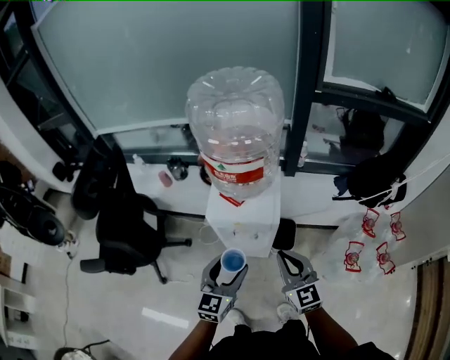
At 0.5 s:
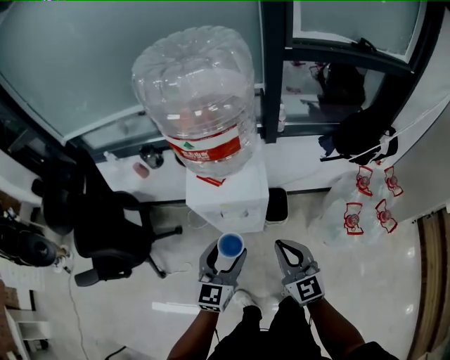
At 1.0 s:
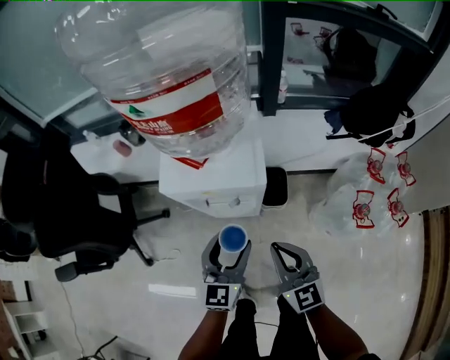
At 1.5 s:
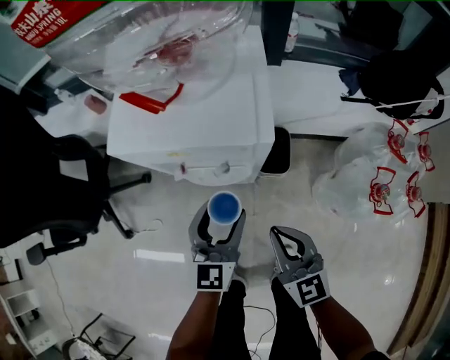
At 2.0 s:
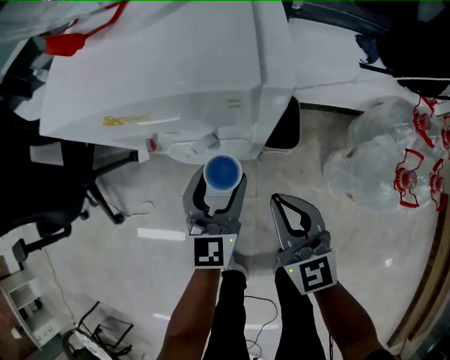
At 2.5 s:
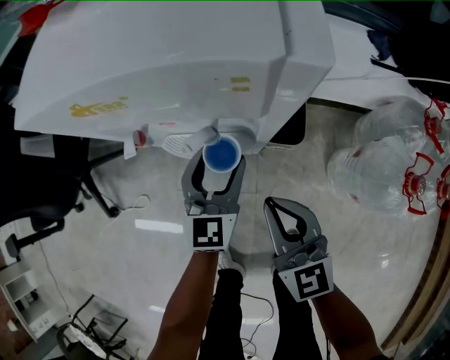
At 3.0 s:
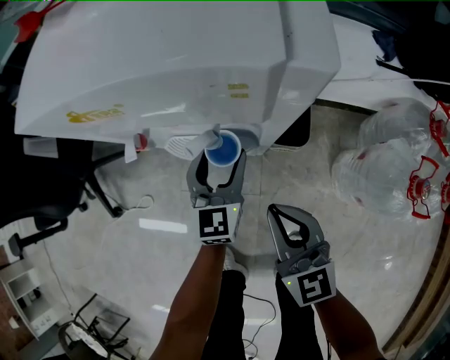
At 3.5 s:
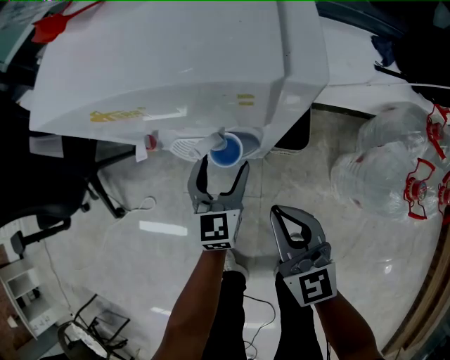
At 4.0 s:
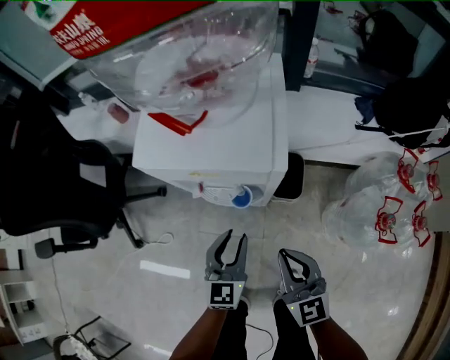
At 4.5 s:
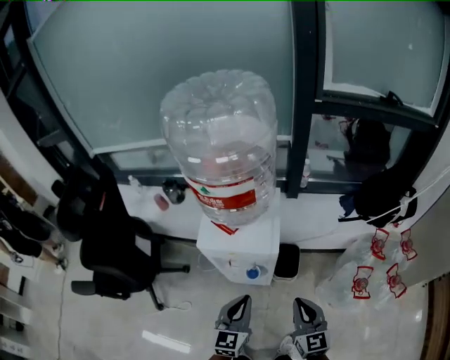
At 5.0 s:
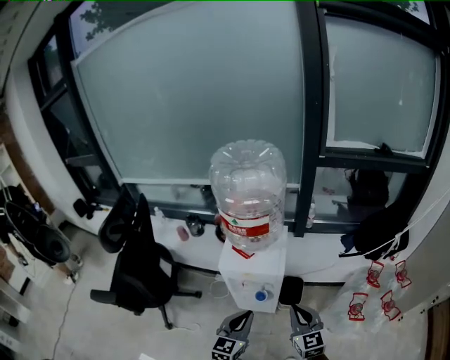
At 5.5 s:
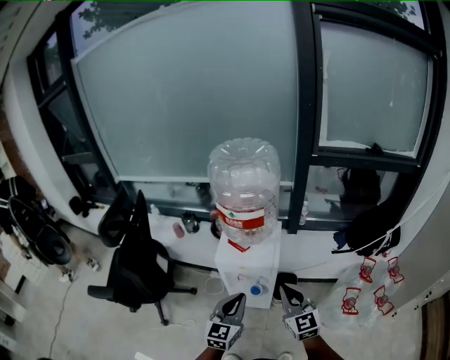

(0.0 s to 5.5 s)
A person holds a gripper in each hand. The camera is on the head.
0.0 s - 2.0 s: The grippers both shift downward by roughly 30 cm.
2.0 s - 3.5 s: The left gripper moves downward, approximately 10 cm.
3.5 s - 5.5 s: The two grippers go about 40 cm upward. The left gripper closes up.

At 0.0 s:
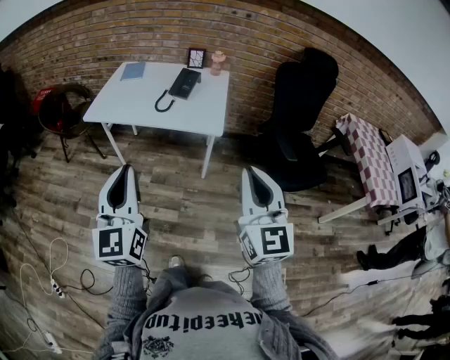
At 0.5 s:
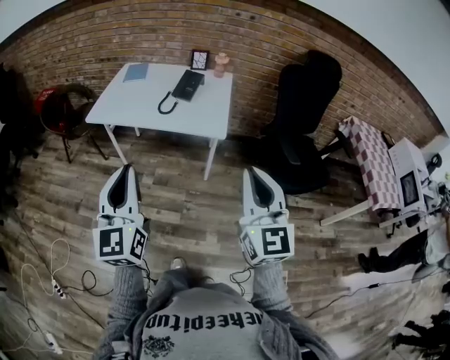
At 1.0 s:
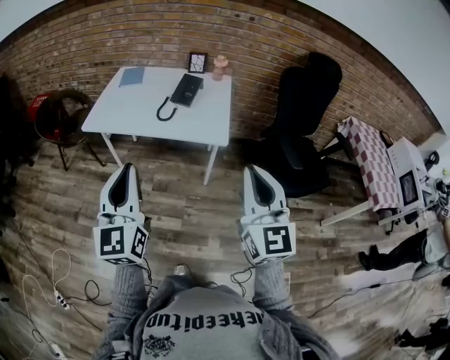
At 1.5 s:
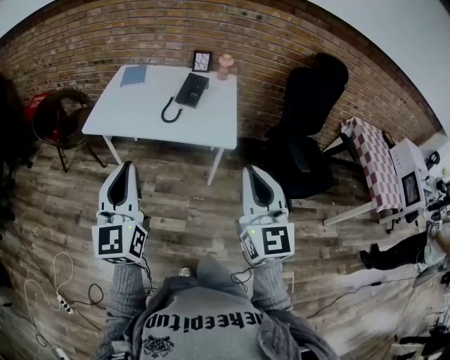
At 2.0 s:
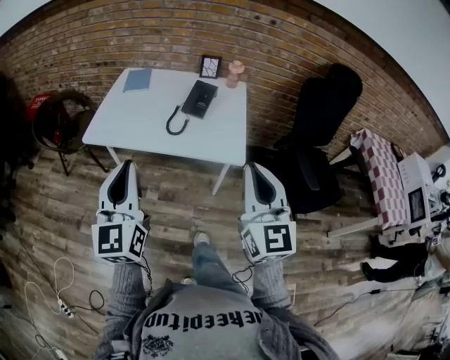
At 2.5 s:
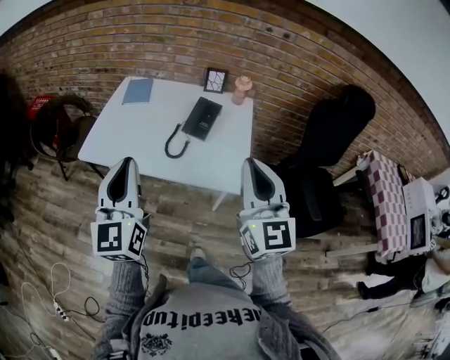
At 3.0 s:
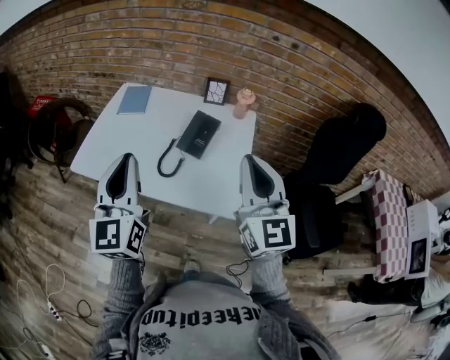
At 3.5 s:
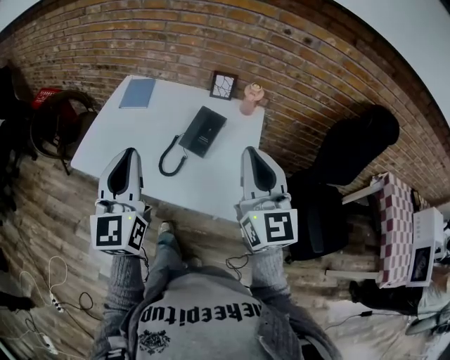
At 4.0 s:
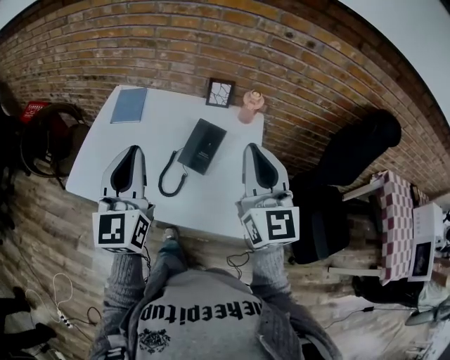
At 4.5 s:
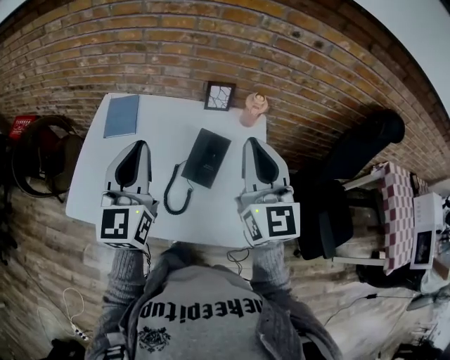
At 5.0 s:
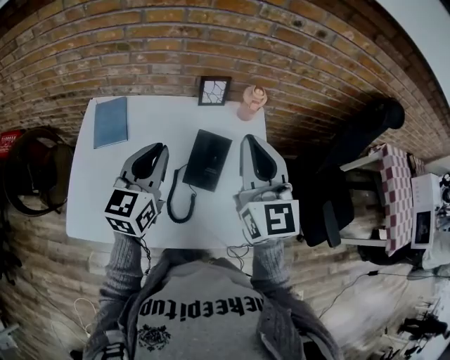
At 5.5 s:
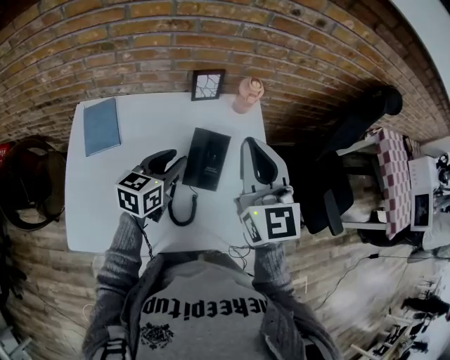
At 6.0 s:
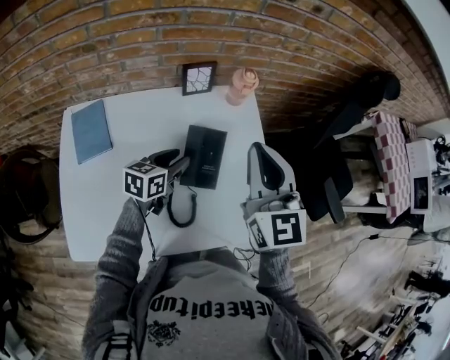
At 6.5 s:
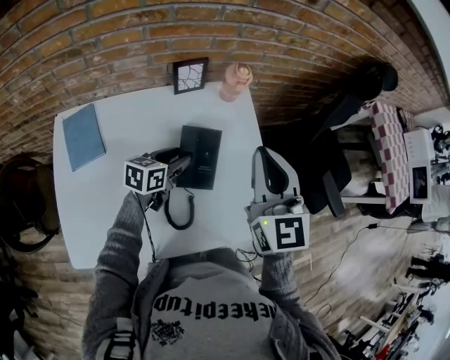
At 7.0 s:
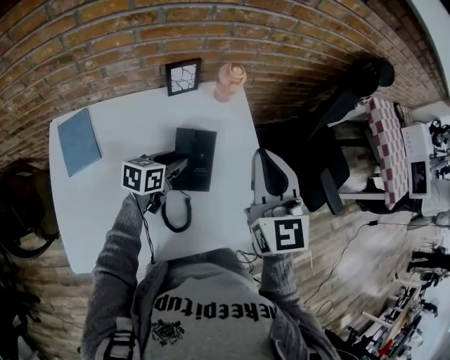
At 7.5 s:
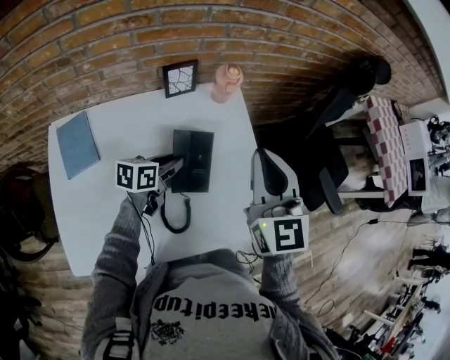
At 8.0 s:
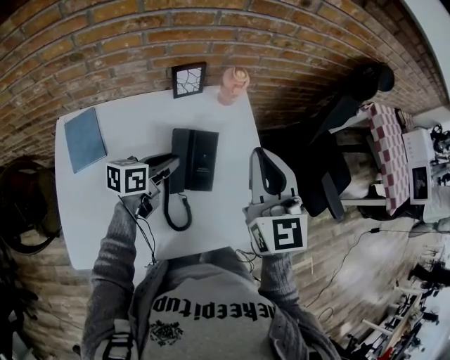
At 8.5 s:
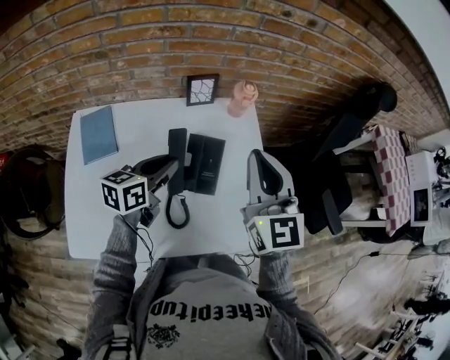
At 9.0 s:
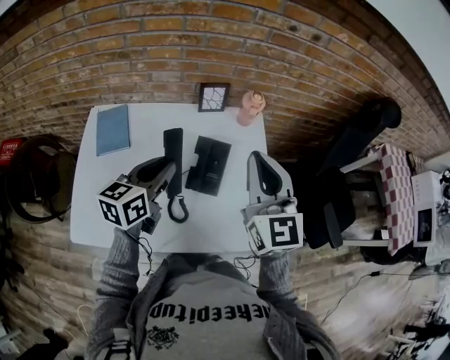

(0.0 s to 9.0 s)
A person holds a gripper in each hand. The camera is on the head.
0.0 s - 2.0 s: Both grippers travel together forward, about 20 cm.
2.0 s - 4.5 s: The two grippers travel together, forward, approximately 40 cm.
4.5 s - 7.0 s: The left gripper moves downward, roughly 30 cm, angles its fingers downward, by some 40 degrees, and opens its fingers. Meanwhile the right gripper heads downward, covering roughly 10 cm, and changes its angle by approximately 30 degrees.
7.0 s - 9.0 s: The left gripper is displaced upward and backward by approximately 20 cm, and rotates about 30 degrees. Meanwhile the right gripper moves approximately 5 cm.

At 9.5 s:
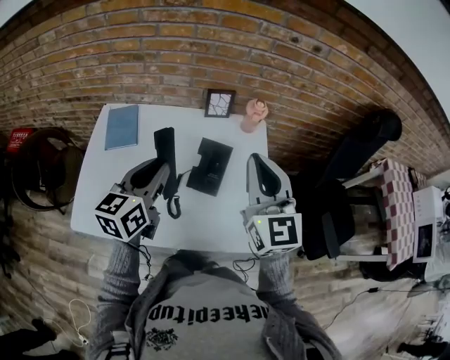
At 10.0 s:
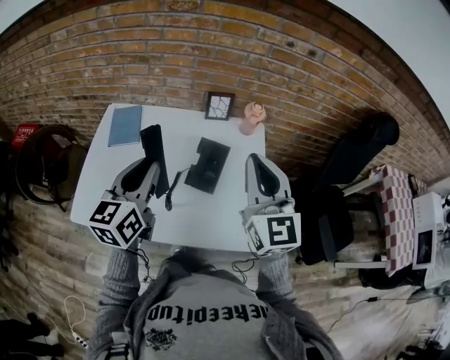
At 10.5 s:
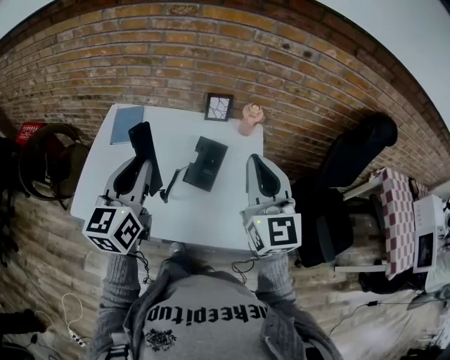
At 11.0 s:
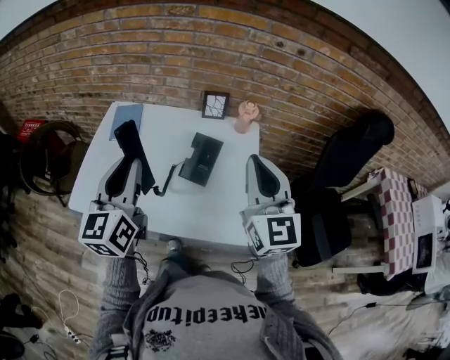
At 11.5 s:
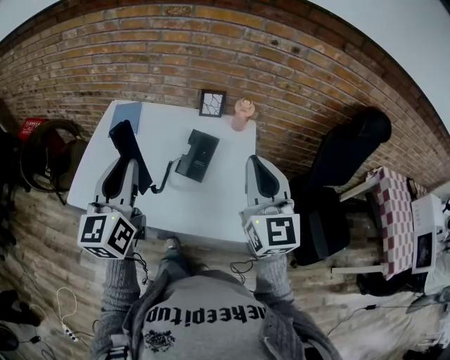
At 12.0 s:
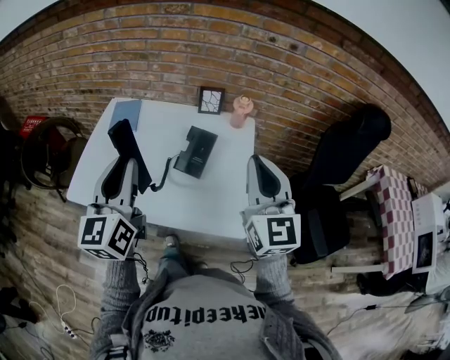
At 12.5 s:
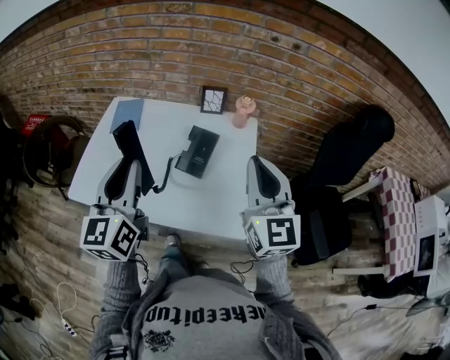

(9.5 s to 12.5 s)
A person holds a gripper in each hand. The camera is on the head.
9.5 s - 11.0 s: The right gripper shifts about 10 cm backward. The left gripper travels backward and upward by about 15 cm, and swivels about 30 degrees.
11.0 s - 12.5 s: The left gripper changes place by about 5 cm.

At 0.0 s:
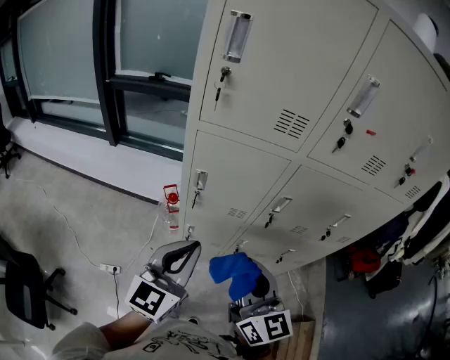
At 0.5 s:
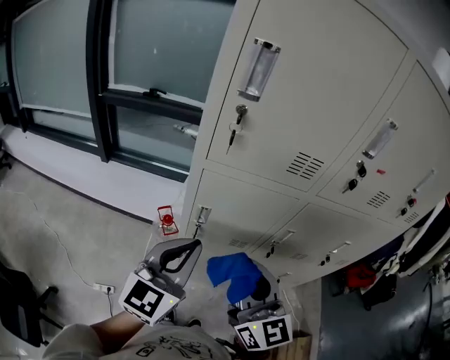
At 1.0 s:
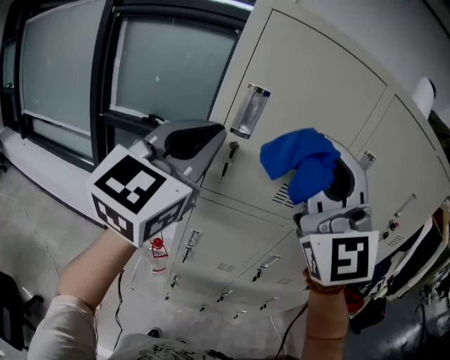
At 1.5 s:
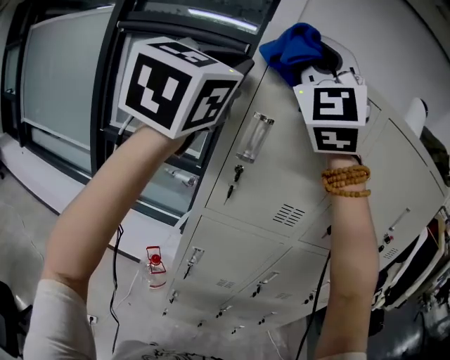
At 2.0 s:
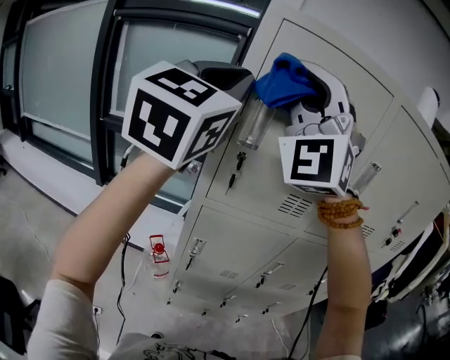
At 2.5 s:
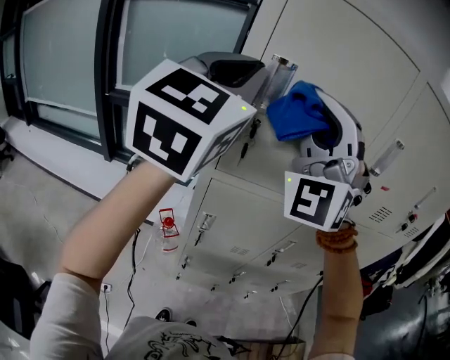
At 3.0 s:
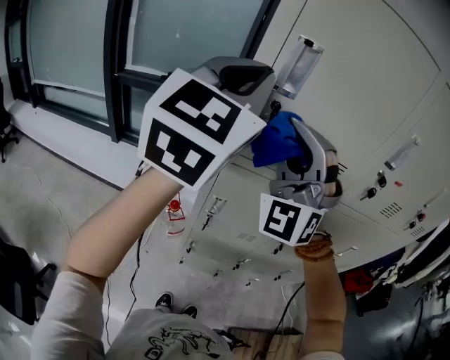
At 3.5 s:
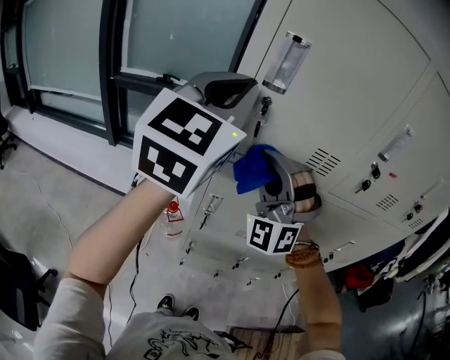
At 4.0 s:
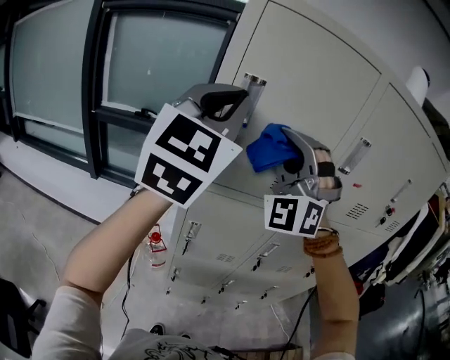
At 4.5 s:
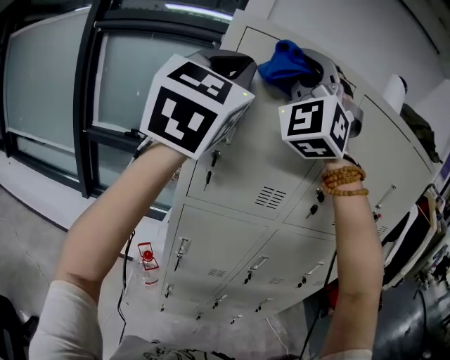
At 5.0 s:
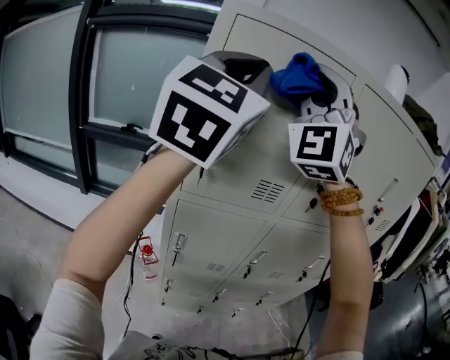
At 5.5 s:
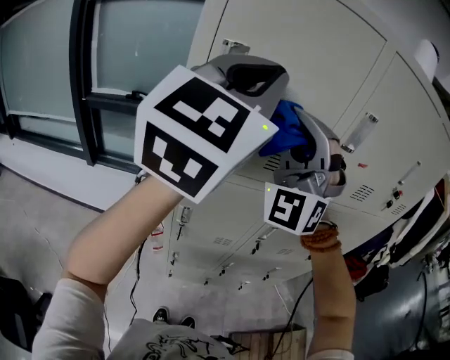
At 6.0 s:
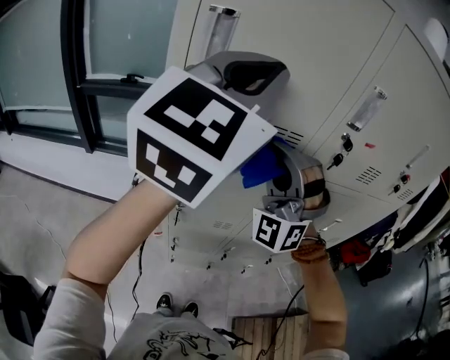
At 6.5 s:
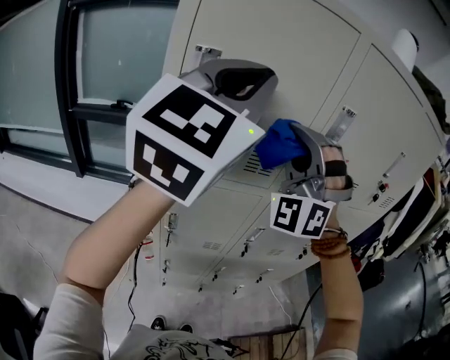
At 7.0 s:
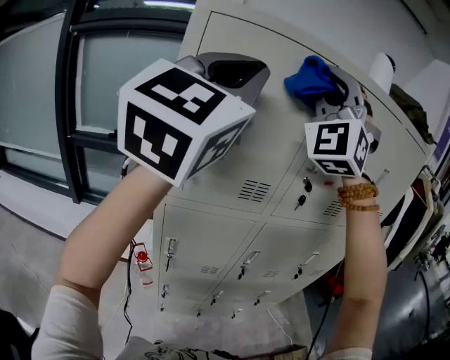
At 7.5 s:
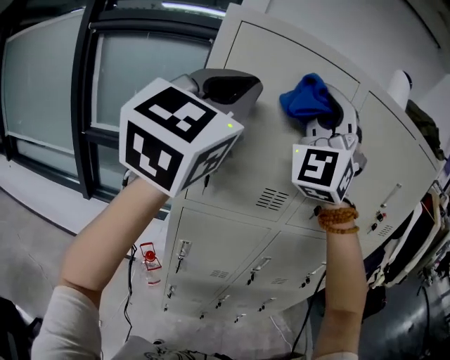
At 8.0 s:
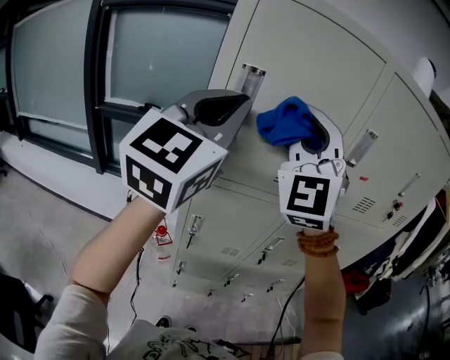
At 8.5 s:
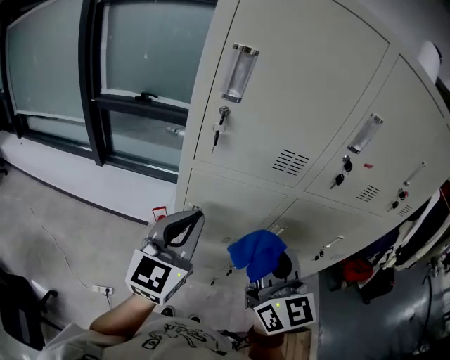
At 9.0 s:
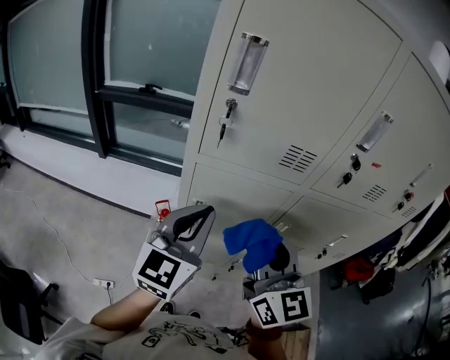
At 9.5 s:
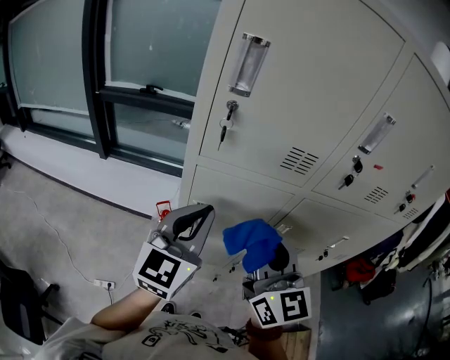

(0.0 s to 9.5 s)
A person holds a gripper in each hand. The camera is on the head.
0.0 s - 2.0 s: Both grippers move upward and forward, about 50 cm. The left gripper changes its angle by some 30 degrees. Meanwhile the right gripper twists approximately 90 degrees counterclockwise, seen from behind.
2.0 s - 4.0 s: The left gripper moves downward, approximately 5 cm; the right gripper goes some 15 cm downward and to the right.
4.0 s - 5.5 s: The right gripper reaches about 20 cm upward, then returns, while the left gripper shifts about 10 cm to the right, and travels upward and back again, roughly 10 cm each way.
5.5 s - 7.5 s: The right gripper is displaced upward by about 15 cm. Meanwhile the left gripper heads upward, covering about 5 cm.
7.5 s - 9.5 s: Both grippers travel together downward, roughly 35 cm. The right gripper rotates around the line of its fingers by about 80 degrees, clockwise from behind; the left gripper turns by approximately 30 degrees.
